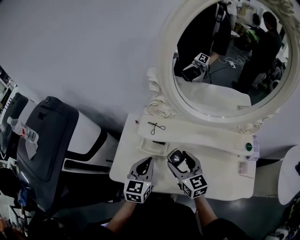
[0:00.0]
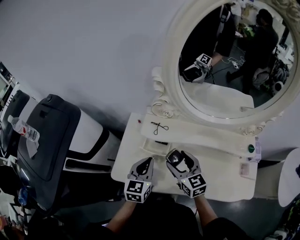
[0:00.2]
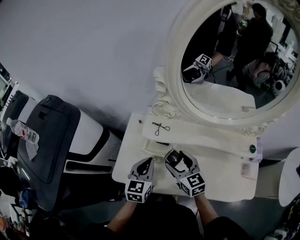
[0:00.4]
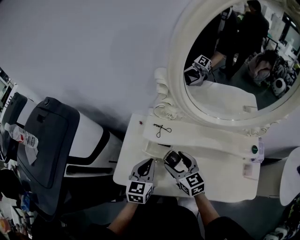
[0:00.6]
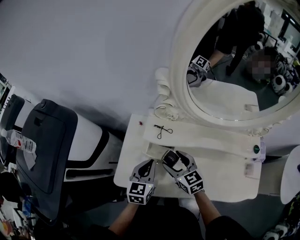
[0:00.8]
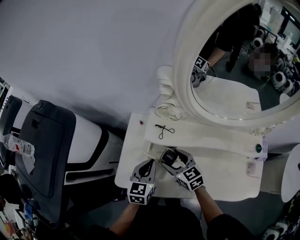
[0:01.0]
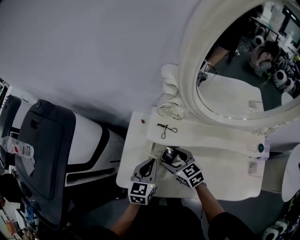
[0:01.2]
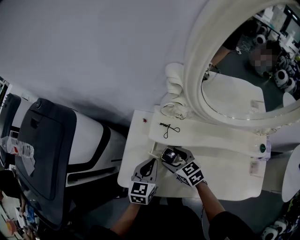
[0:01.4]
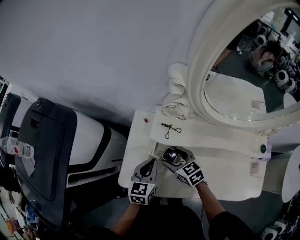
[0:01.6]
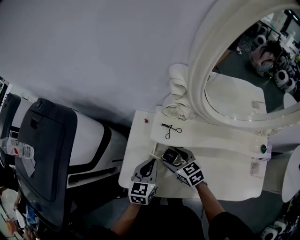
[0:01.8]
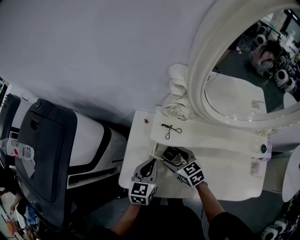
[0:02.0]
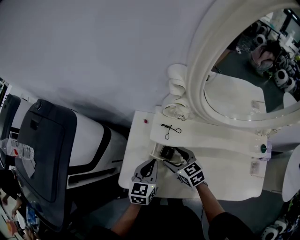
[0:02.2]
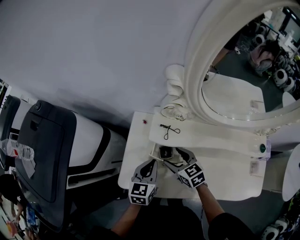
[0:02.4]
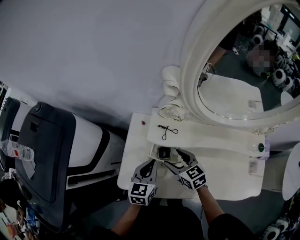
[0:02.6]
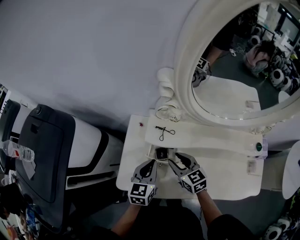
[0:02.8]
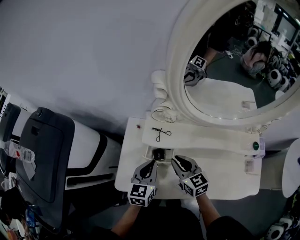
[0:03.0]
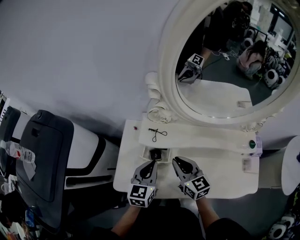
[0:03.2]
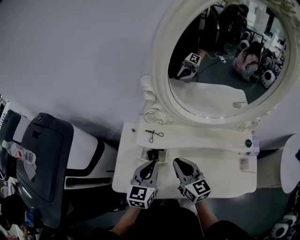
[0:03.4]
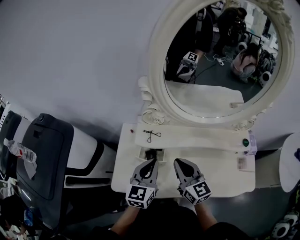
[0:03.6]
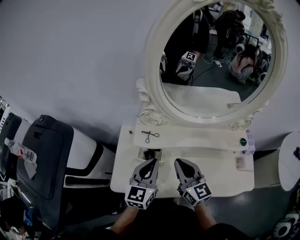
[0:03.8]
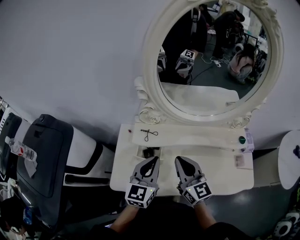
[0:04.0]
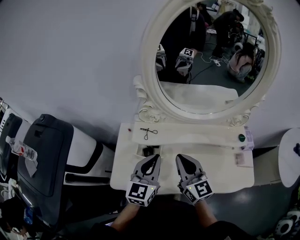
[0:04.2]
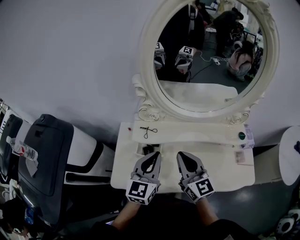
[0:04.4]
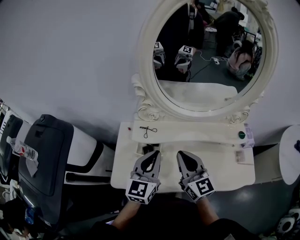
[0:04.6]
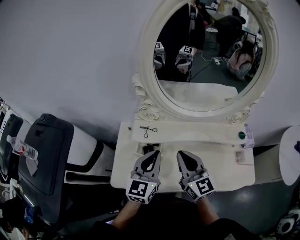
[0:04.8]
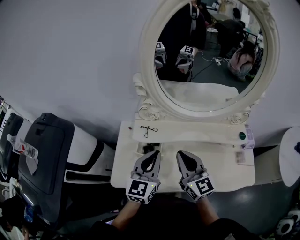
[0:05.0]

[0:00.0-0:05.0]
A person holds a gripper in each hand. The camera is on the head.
0:00.0 to 0:01.6: The right gripper is displaced downward, to the left and forward by approximately 15 cm, and swivels approximately 30 degrees; the left gripper moves downward, forward and to the left, about 10 cm.
0:01.6 to 0:03.4: The right gripper goes approximately 15 cm upward, to the right and backward, rotates about 30 degrees, and closes, while the left gripper travels upward and to the right by approximately 10 cm.
0:03.4 to 0:05.0: Both grippers travel together upward, some 5 cm.

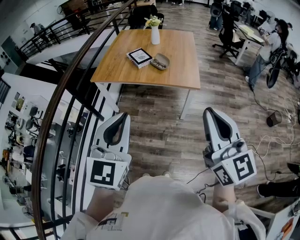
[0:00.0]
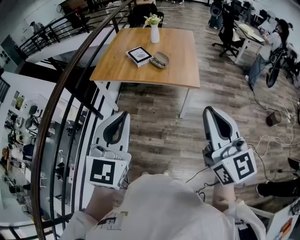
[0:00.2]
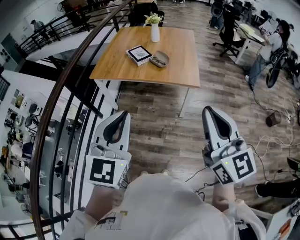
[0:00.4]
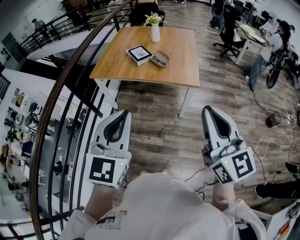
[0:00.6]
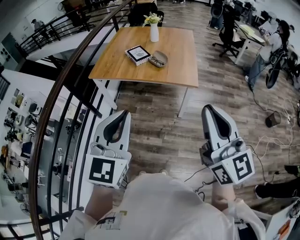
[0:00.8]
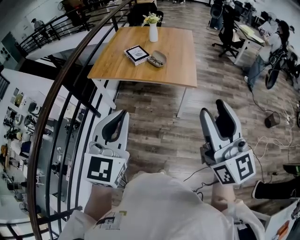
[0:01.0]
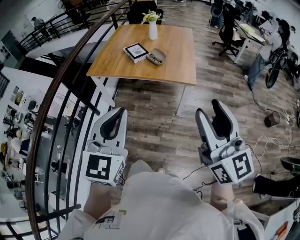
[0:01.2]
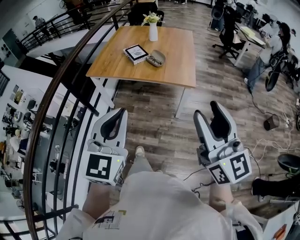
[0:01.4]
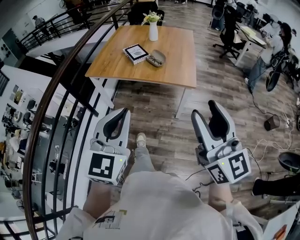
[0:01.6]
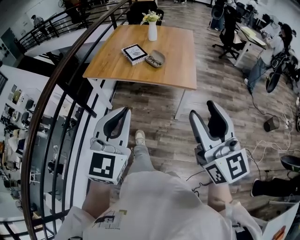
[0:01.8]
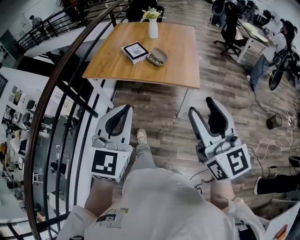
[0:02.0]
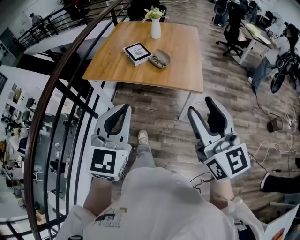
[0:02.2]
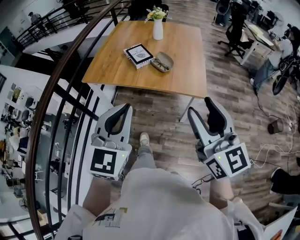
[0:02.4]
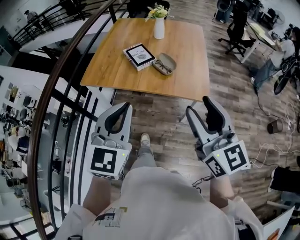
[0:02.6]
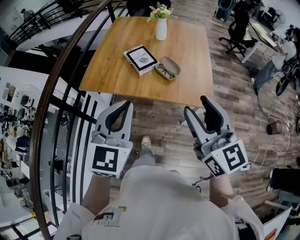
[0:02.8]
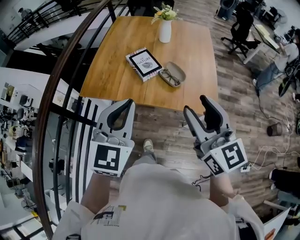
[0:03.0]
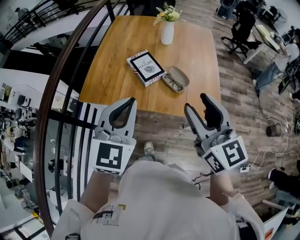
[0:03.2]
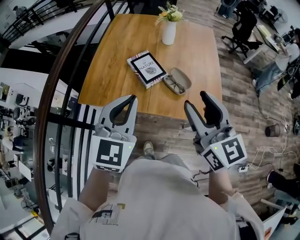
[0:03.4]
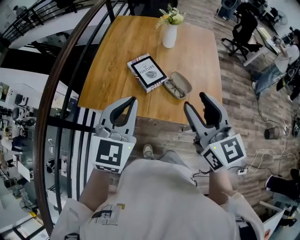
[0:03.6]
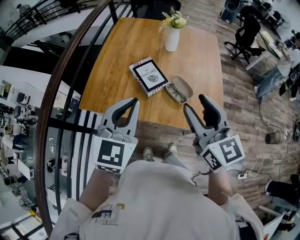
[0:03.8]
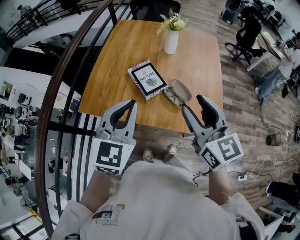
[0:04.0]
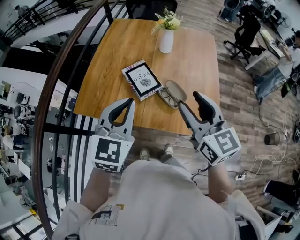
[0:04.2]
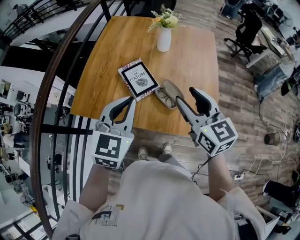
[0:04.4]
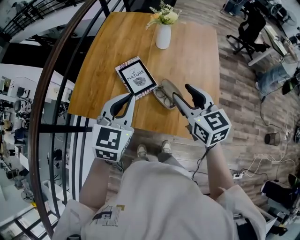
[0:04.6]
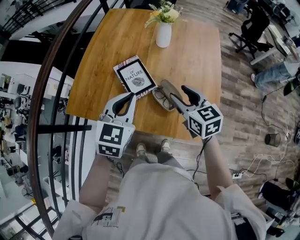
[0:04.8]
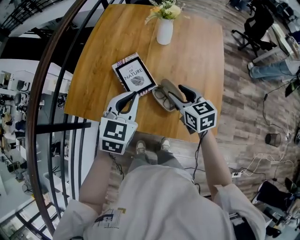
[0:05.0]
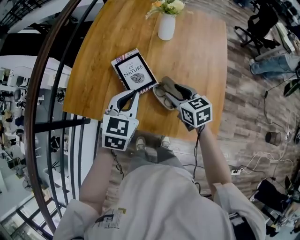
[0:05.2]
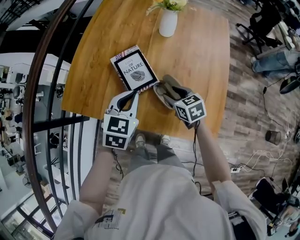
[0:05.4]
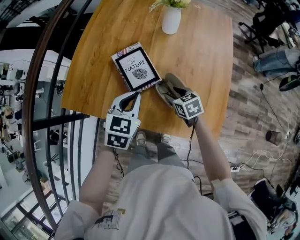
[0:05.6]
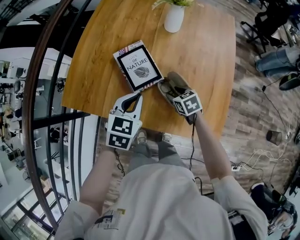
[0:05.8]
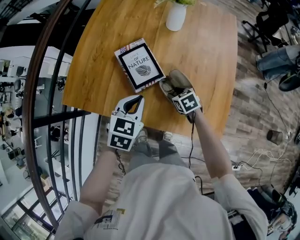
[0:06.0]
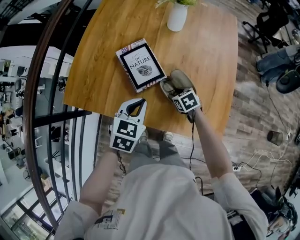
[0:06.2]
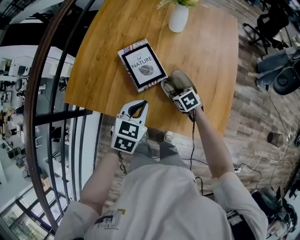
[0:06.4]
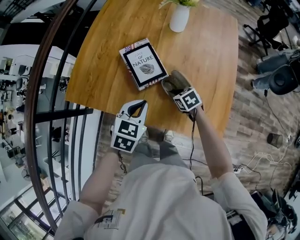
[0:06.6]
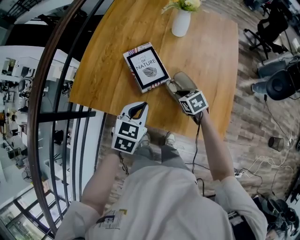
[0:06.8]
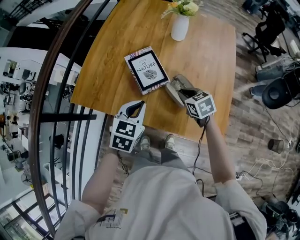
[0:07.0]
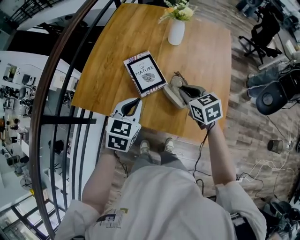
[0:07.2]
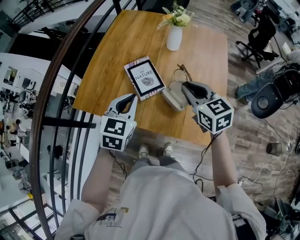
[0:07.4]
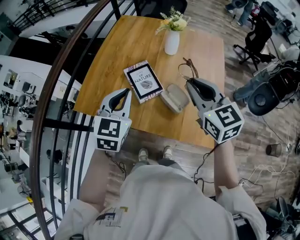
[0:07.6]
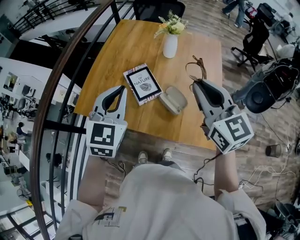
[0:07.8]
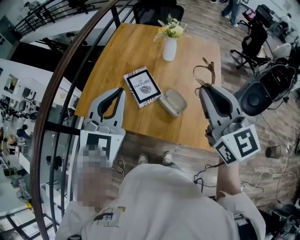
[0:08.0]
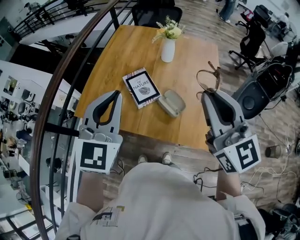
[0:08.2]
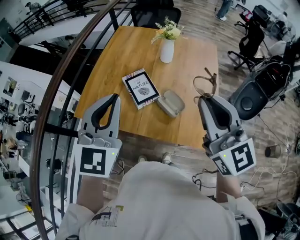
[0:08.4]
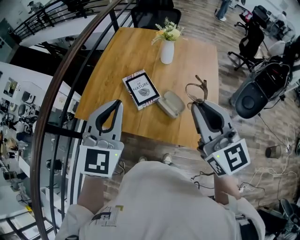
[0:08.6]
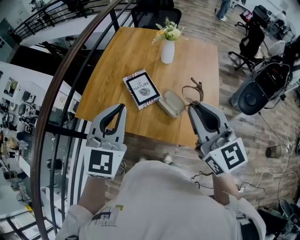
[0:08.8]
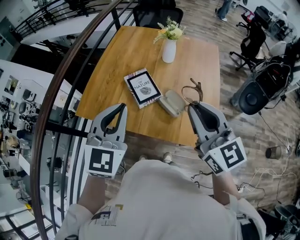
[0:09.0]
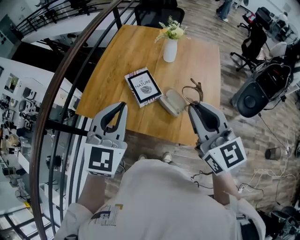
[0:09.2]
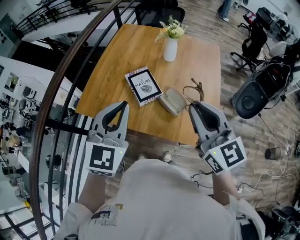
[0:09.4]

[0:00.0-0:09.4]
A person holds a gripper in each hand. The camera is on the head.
0:00.0 to 0:01.6: The left gripper travels to the right by about 5 cm, while the right gripper opens.
0:01.6 to 0:03.2: The pair of grippers is taken forward, roughly 50 cm.
0:03.2 to 0:04.8: The grippers both shift forward and downward by some 30 cm. The right gripper swivels approximately 30 degrees.
0:04.8 to 0:06.2: The left gripper shifts some 15 cm downward, while the right gripper travels downward by roughly 30 cm, and points its fingers approximately 30 degrees further downward.
0:06.2 to 0:07.8: The left gripper moves upward, roughly 25 cm, and swivels roughly 30 degrees. The right gripper travels upward by about 50 cm, tilts its fingers approximately 50 degrees upward, and closes its fingers.
0:07.8 to 0:09.4: The grippers both shift backward by some 10 cm.

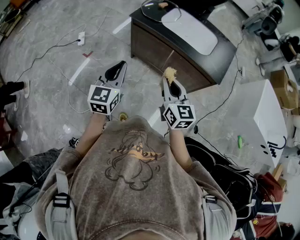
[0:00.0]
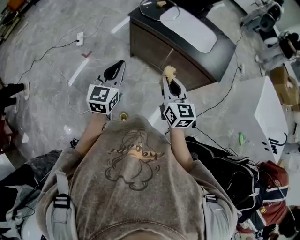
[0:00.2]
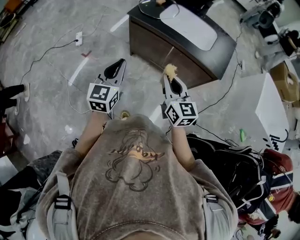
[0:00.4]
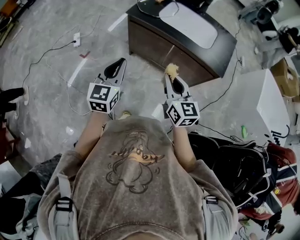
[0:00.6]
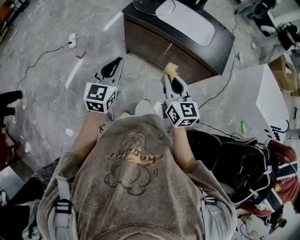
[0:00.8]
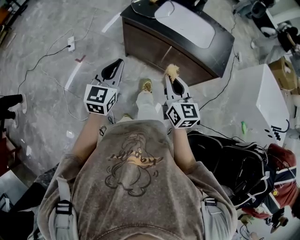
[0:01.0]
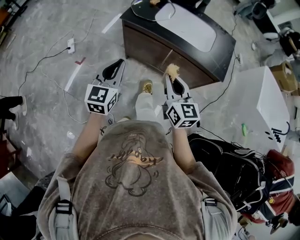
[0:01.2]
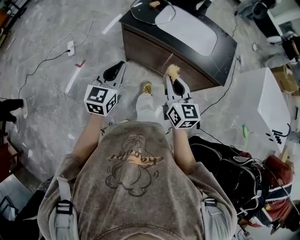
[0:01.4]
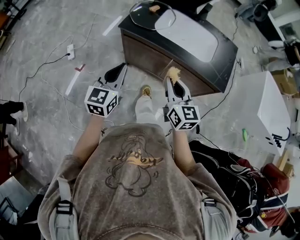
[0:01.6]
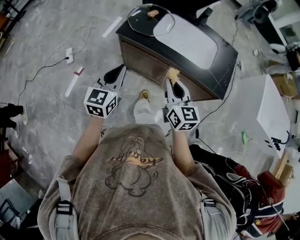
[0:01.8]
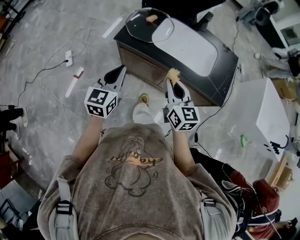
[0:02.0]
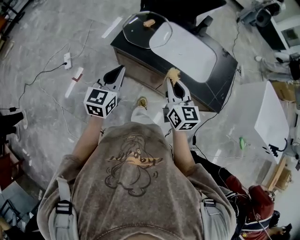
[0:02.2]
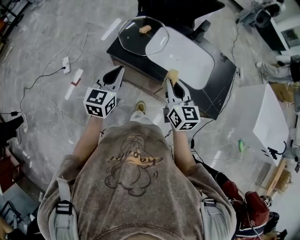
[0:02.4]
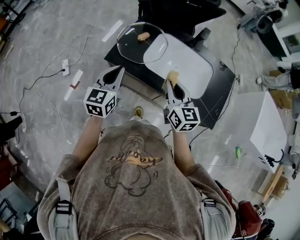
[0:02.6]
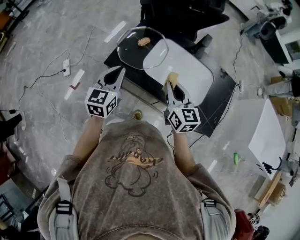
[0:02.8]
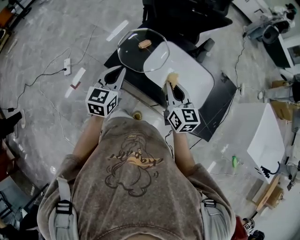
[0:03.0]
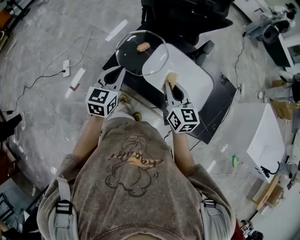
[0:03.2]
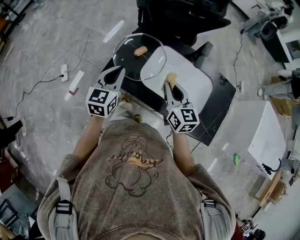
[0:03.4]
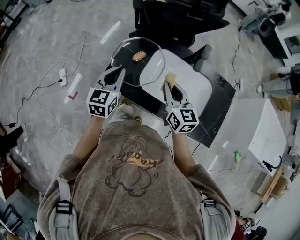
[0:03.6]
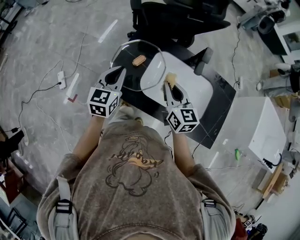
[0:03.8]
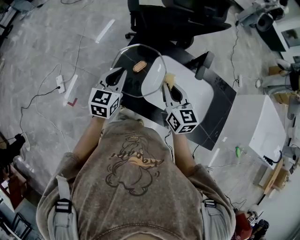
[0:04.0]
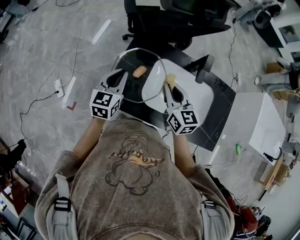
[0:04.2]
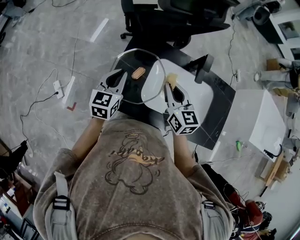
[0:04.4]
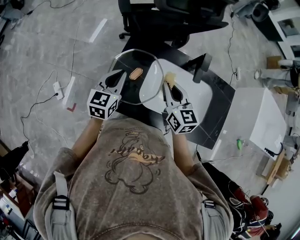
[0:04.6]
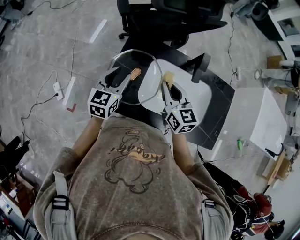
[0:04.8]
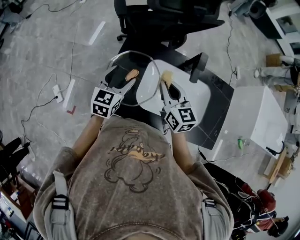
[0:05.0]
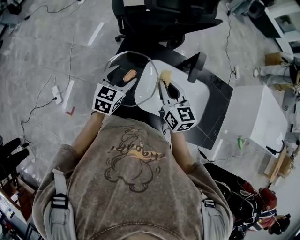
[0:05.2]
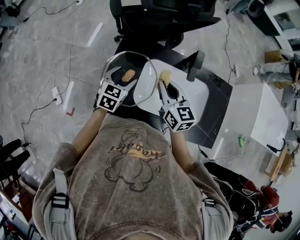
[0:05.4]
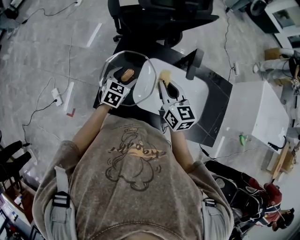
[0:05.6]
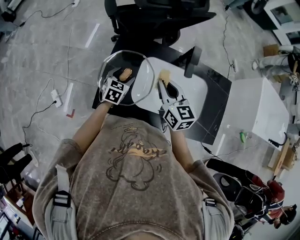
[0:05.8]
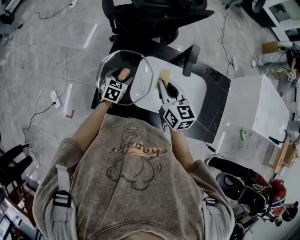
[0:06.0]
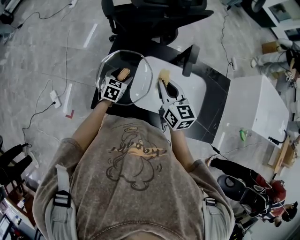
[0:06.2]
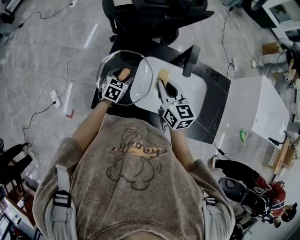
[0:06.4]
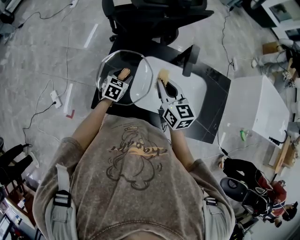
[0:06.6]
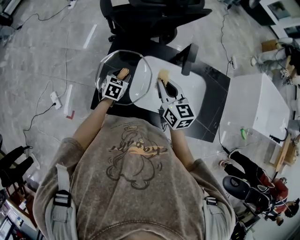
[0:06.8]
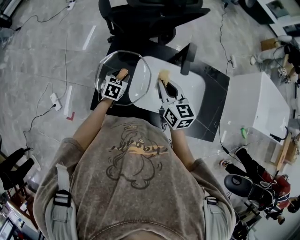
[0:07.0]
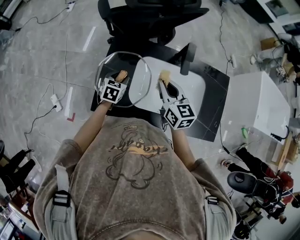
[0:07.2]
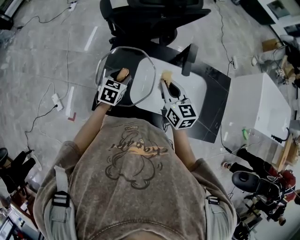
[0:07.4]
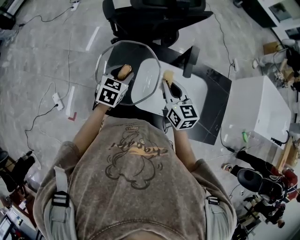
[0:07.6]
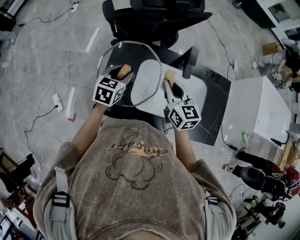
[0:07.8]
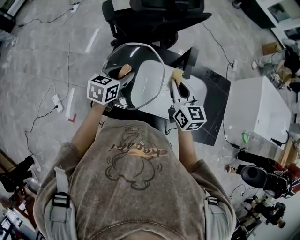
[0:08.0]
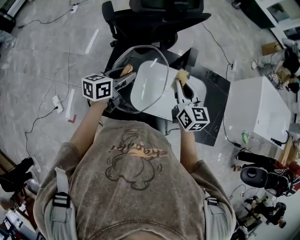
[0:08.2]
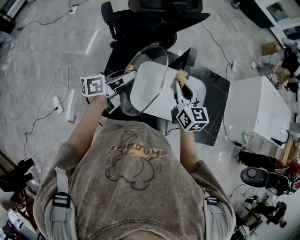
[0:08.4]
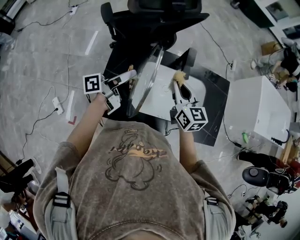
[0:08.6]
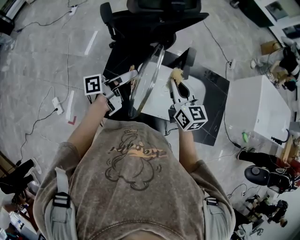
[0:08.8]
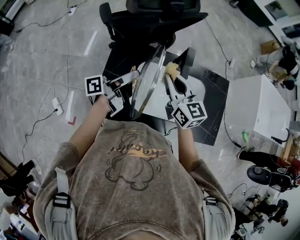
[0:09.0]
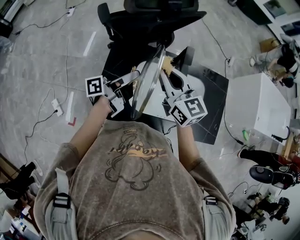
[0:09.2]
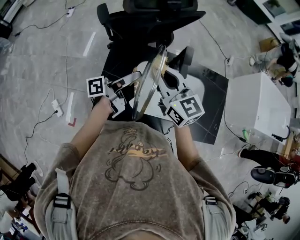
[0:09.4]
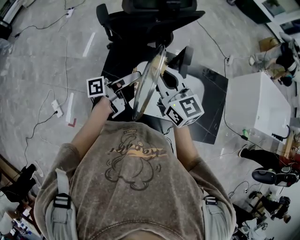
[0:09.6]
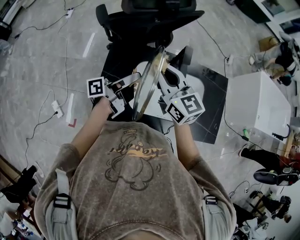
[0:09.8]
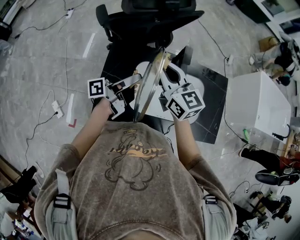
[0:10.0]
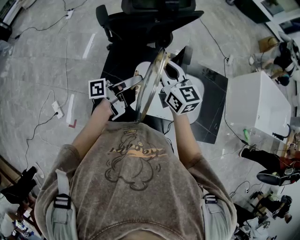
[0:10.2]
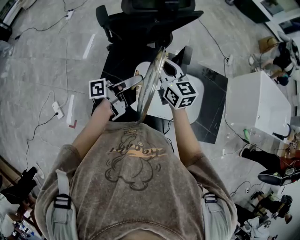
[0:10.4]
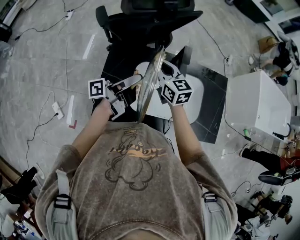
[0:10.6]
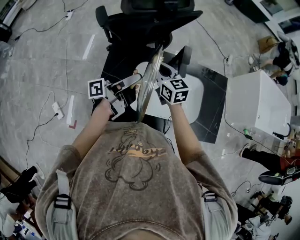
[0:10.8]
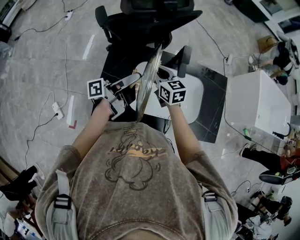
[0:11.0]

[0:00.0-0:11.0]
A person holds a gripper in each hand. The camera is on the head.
0:00.0 to 0:01.6: Both grippers travel together forward, some 15 cm.
0:01.6 to 0:03.2: Both grippers move forward, some 30 cm.
0:03.2 to 0:04.8: The two grippers go some 15 cm forward. The left gripper opens.
0:04.8 to 0:06.2: The left gripper goes roughly 15 cm downward, swivels approximately 20 degrees, and opens.
0:06.2 to 0:07.8: The left gripper moves upward, about 15 cm, and closes up.
0:07.8 to 0:09.4: The left gripper shifts roughly 10 cm upward and to the right, and points its fingers roughly 50 degrees further upward. The right gripper moves upward, about 10 cm.
0:09.4 to 0:11.0: The right gripper goes roughly 15 cm downward, and rotates some 20 degrees.
